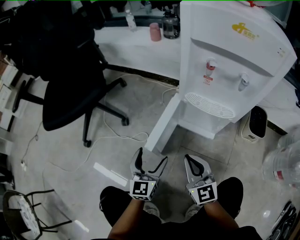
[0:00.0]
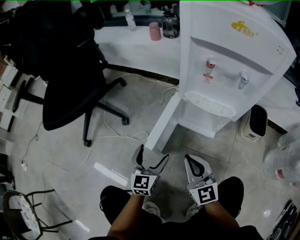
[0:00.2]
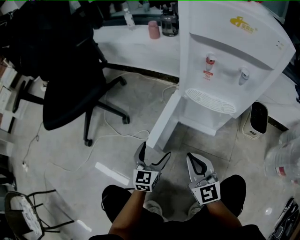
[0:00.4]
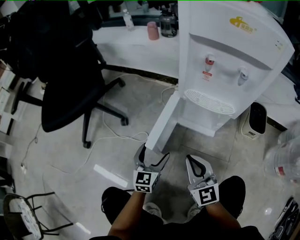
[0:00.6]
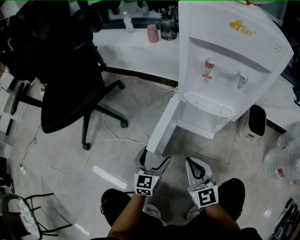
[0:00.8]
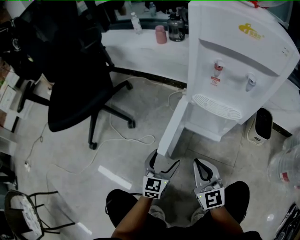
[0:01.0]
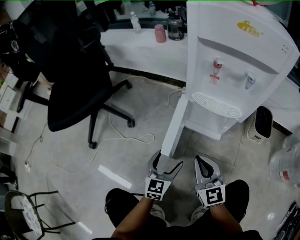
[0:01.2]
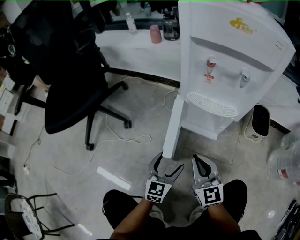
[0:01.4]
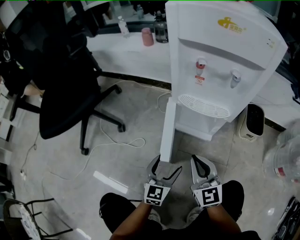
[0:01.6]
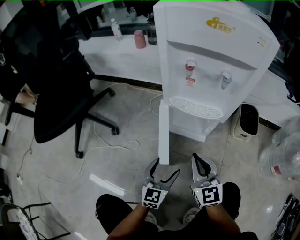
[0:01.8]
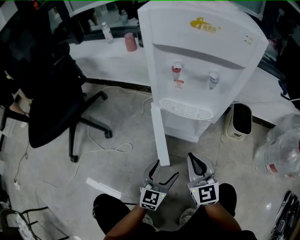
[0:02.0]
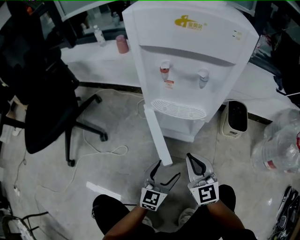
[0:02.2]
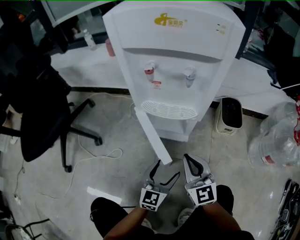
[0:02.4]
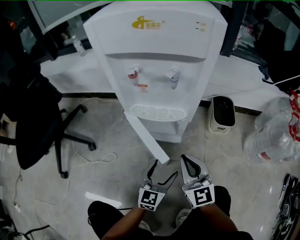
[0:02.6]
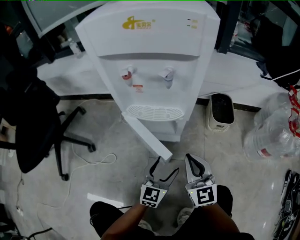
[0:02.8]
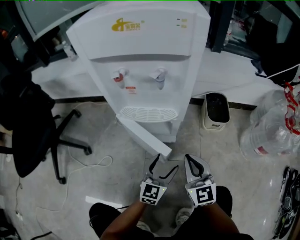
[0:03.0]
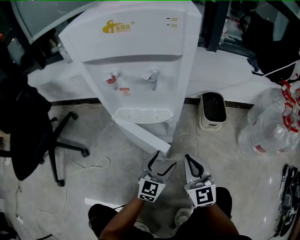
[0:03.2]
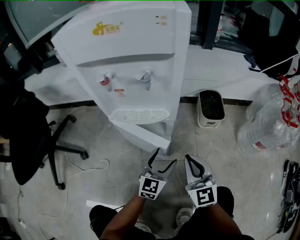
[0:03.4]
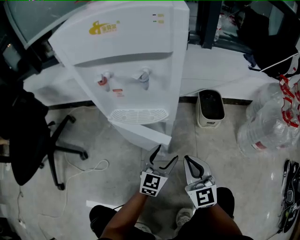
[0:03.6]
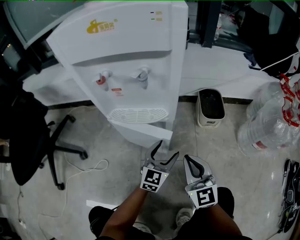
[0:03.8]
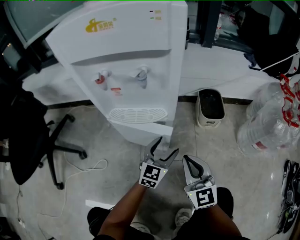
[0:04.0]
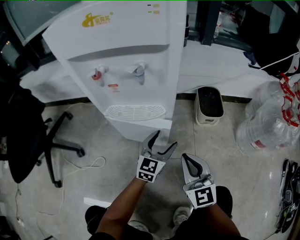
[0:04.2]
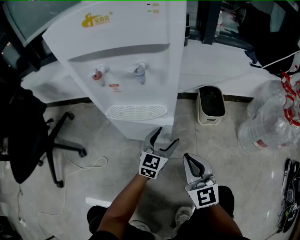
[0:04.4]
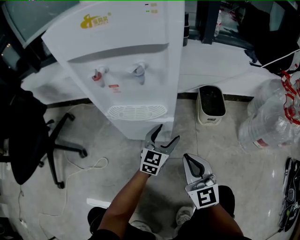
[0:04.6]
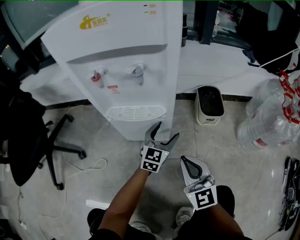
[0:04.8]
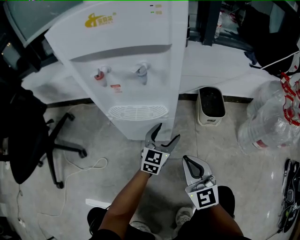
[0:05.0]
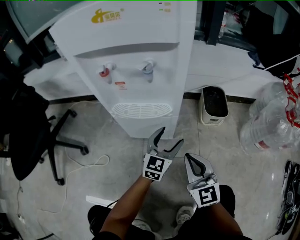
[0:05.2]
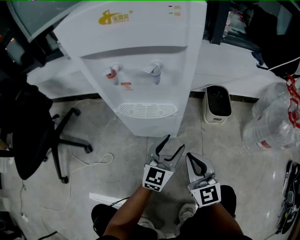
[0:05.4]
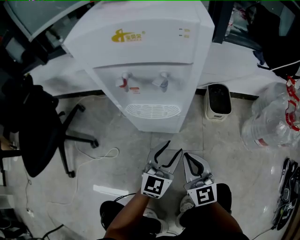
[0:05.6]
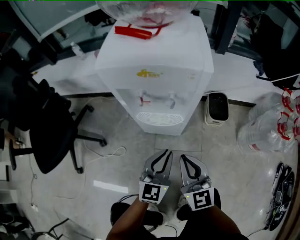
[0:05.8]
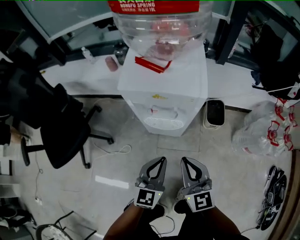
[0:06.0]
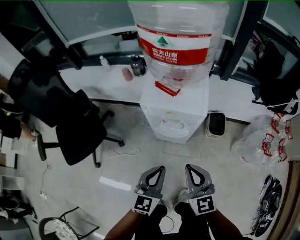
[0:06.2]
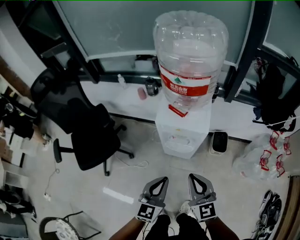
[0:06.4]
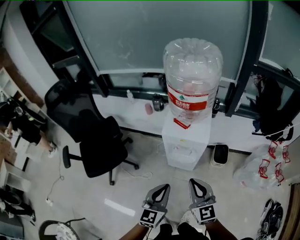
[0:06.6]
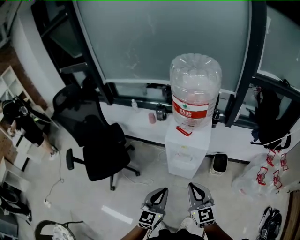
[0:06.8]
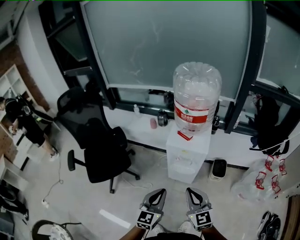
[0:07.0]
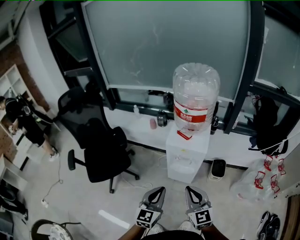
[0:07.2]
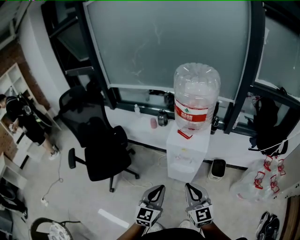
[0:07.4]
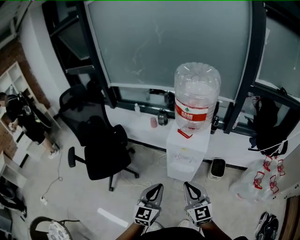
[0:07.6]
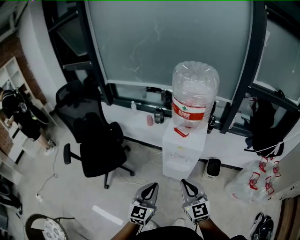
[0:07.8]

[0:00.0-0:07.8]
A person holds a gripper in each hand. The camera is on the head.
0:00.0 to 0:01.6: The left gripper travels to the right by roughly 10 cm.
0:01.6 to 0:03.2: The two grippers go some 15 cm to the right. The left gripper changes its angle by about 20 degrees.
0:03.2 to 0:04.6: The left gripper goes roughly 10 cm forward.
0:04.6 to 0:06.2: The right gripper shifts about 40 cm upward. Meanwhile the left gripper heads upward and backward, covering roughly 50 cm, and closes up.
0:06.2 to 0:07.8: The right gripper moves upward and backward, some 15 cm. The left gripper goes about 20 cm upward, backward and to the left.

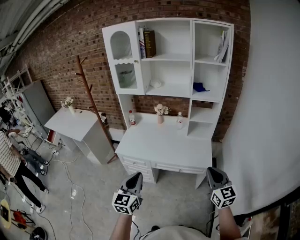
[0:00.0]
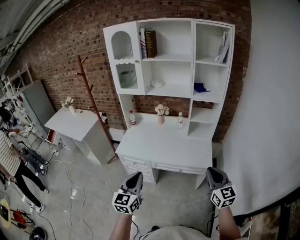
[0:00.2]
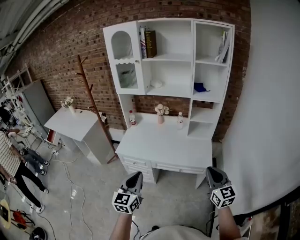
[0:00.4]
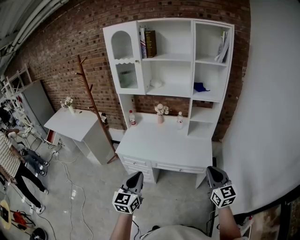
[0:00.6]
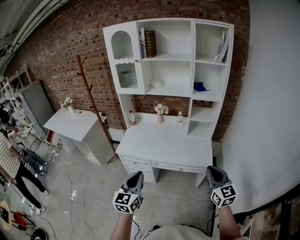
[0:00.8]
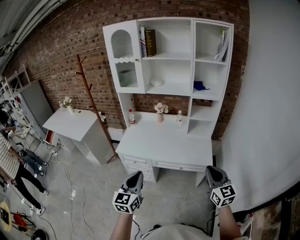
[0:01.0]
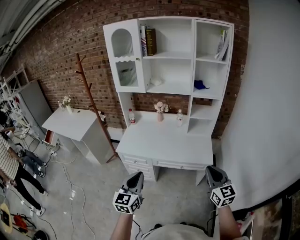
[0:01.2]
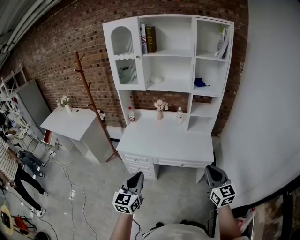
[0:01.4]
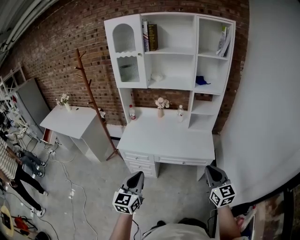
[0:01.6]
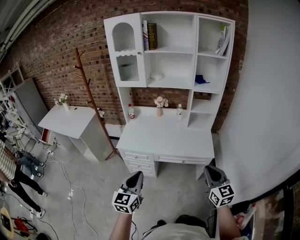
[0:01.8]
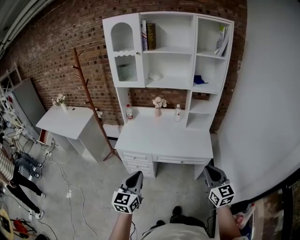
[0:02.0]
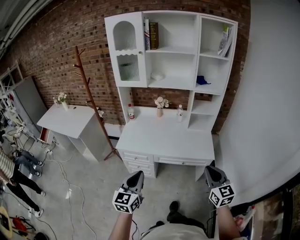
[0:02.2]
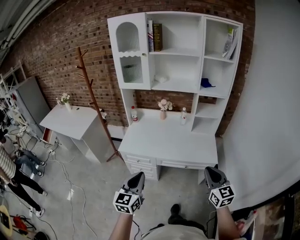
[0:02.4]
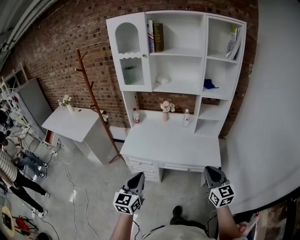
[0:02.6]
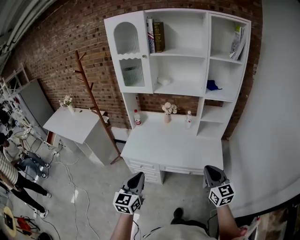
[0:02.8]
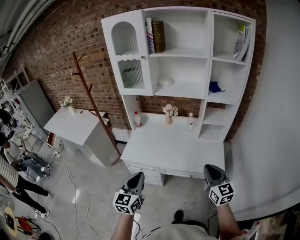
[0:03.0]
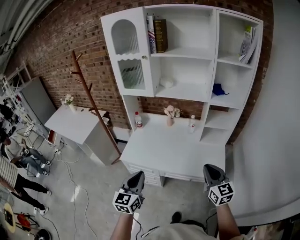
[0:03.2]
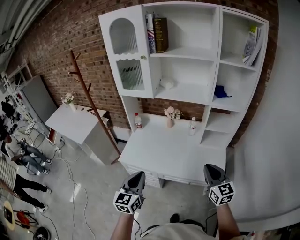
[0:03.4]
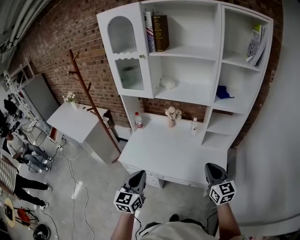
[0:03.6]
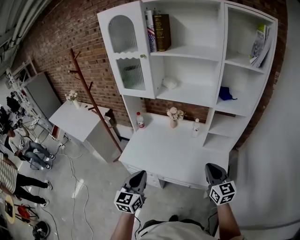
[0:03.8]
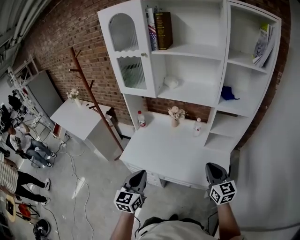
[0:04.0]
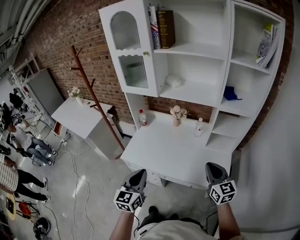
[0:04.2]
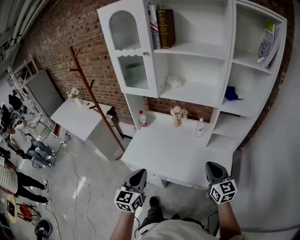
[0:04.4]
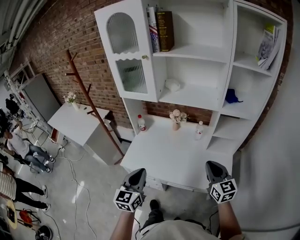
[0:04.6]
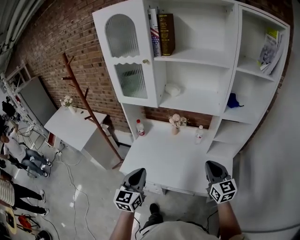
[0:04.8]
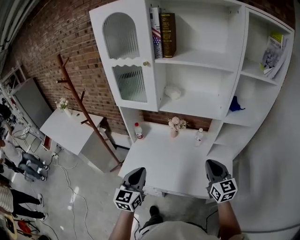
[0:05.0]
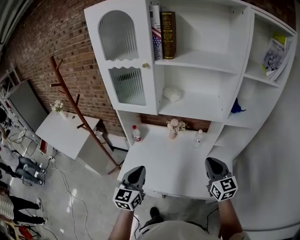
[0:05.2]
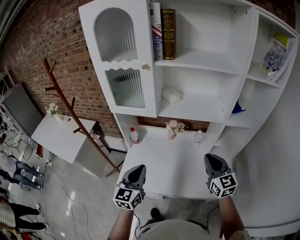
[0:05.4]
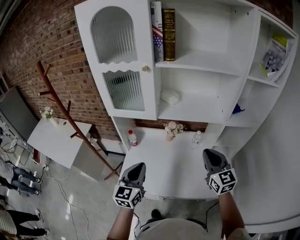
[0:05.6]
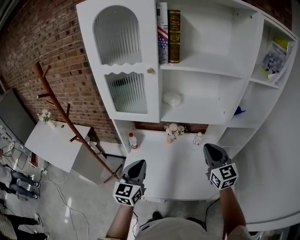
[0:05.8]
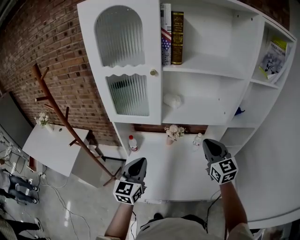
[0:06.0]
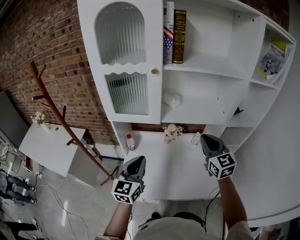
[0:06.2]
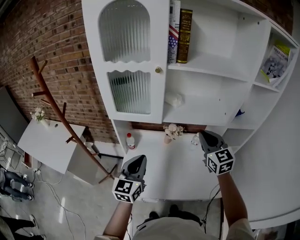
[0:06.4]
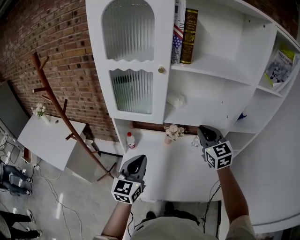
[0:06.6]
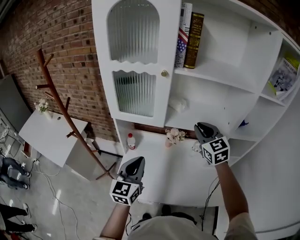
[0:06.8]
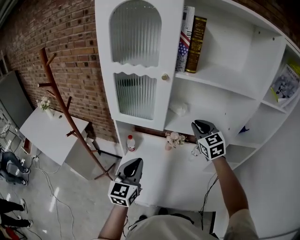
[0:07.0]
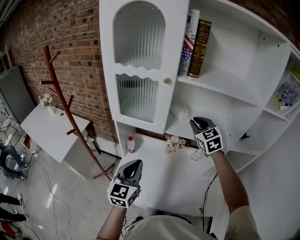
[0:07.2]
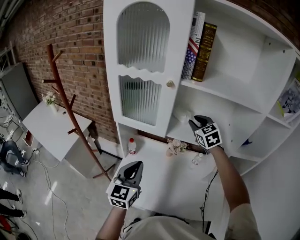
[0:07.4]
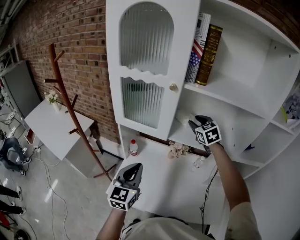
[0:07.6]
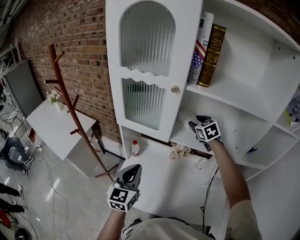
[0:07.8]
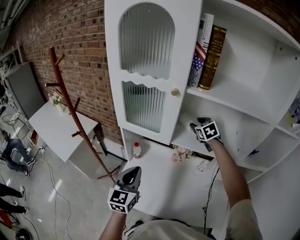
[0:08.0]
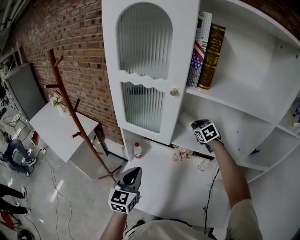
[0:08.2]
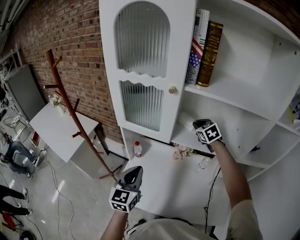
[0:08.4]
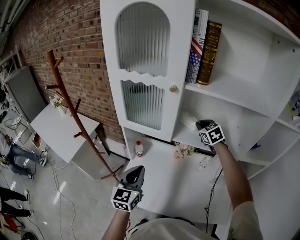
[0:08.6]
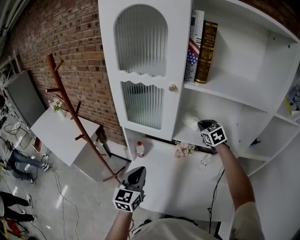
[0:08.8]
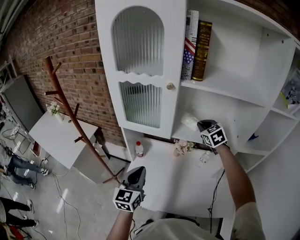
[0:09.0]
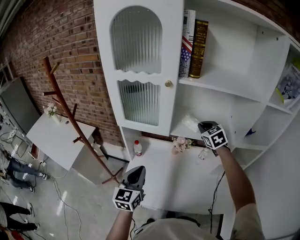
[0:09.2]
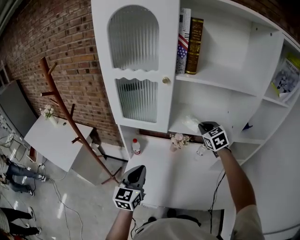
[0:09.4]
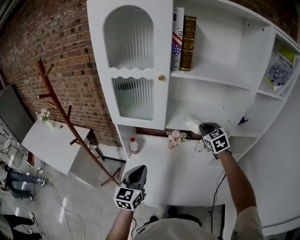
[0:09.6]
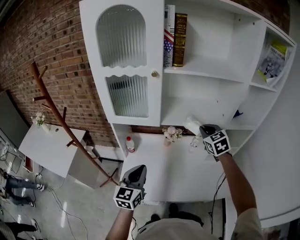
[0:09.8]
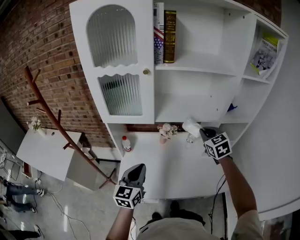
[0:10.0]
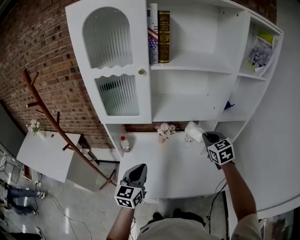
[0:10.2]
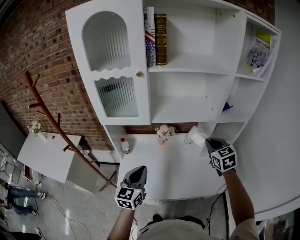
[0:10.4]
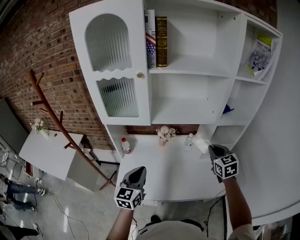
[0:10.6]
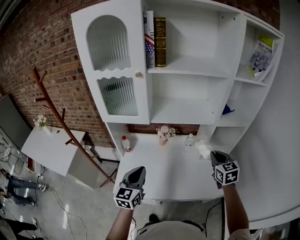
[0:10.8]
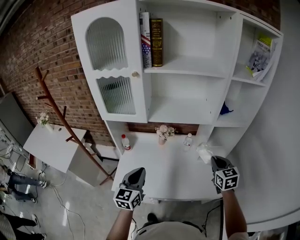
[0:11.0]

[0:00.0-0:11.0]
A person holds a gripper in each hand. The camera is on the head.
0:00.0 to 0:01.6: The grippers both shift to the left by roughly 5 cm.
0:01.6 to 0:03.2: Both grippers travel together forward, roughly 20 cm.
0:03.2 to 0:04.8: The grippers both shift forward by roughly 15 cm.
0:04.8 to 0:06.2: The left gripper goes about 20 cm forward and to the left. The right gripper moves forward, to the left and upward, approximately 25 cm.
0:06.2 to 0:07.8: The right gripper travels forward by approximately 30 cm, rotates approximately 30 degrees, and opens its fingers.
0:07.8 to 0:09.4: The right gripper shifts roughly 10 cm backward, and closes its fingers.
0:09.4 to 0:11.0: The right gripper moves backward and to the right, about 30 cm, and turns by about 30 degrees. The left gripper is displaced to the right and backward by roughly 10 cm.

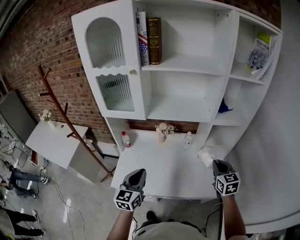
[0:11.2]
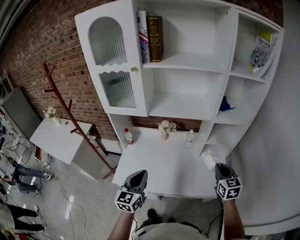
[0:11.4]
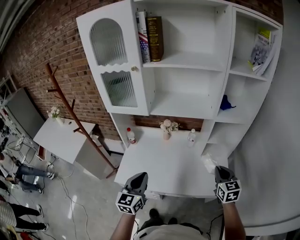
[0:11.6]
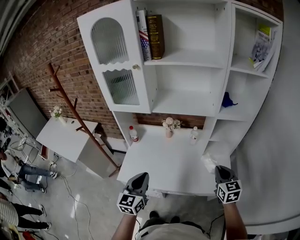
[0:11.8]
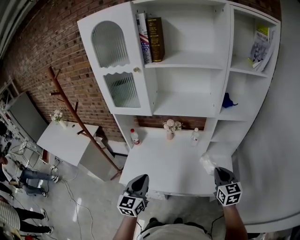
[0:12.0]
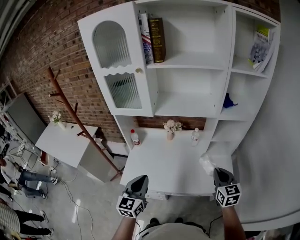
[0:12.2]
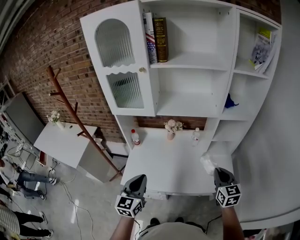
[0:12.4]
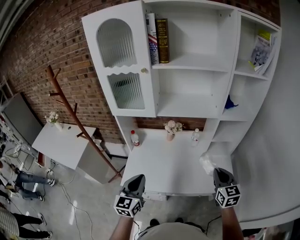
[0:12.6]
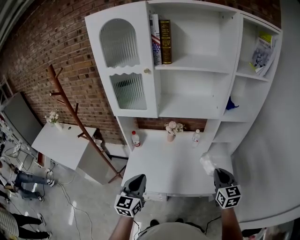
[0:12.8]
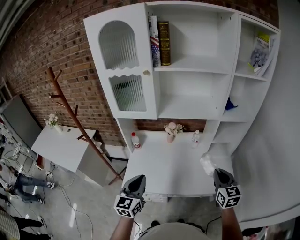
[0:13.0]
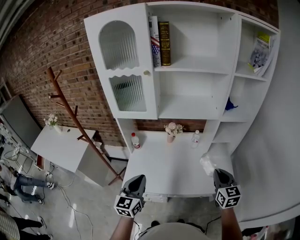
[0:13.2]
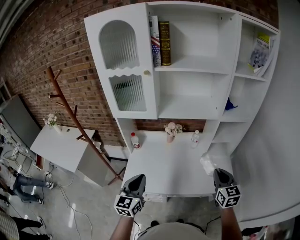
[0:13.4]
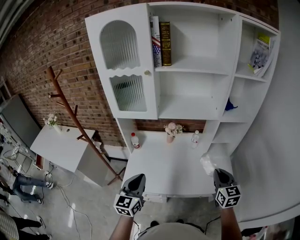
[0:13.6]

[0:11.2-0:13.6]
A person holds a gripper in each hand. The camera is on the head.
0:11.2 to 0:12.4: The grippers both shift backward by about 5 cm.
0:12.4 to 0:13.6: There are only small adjustments of the grippers.

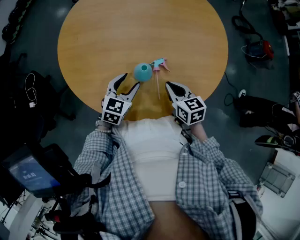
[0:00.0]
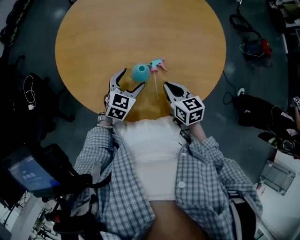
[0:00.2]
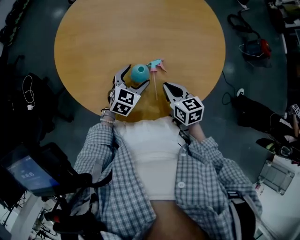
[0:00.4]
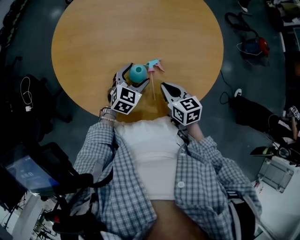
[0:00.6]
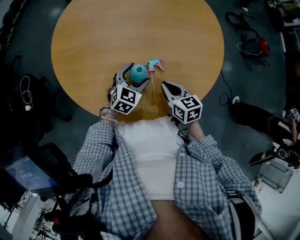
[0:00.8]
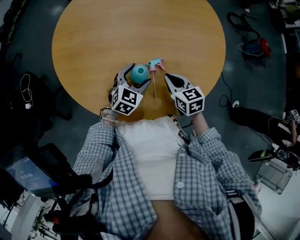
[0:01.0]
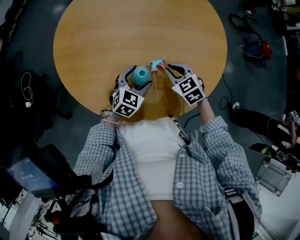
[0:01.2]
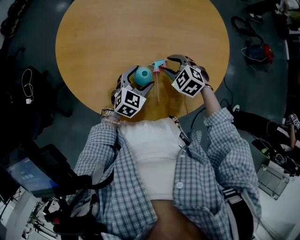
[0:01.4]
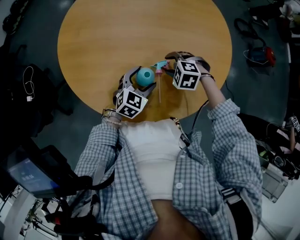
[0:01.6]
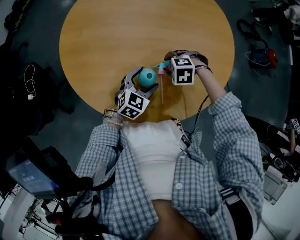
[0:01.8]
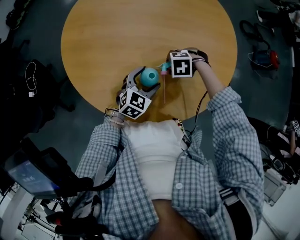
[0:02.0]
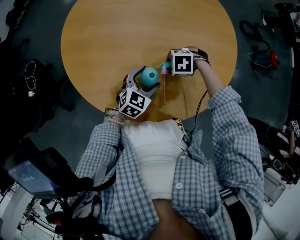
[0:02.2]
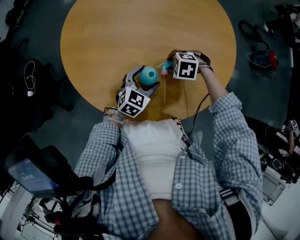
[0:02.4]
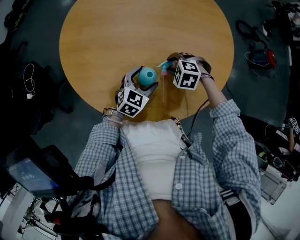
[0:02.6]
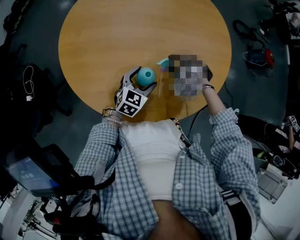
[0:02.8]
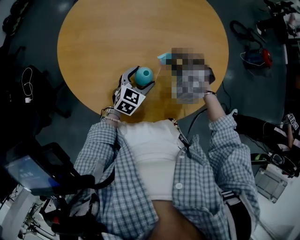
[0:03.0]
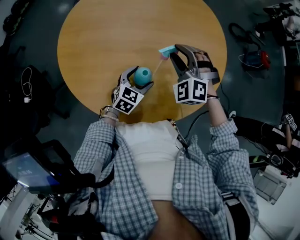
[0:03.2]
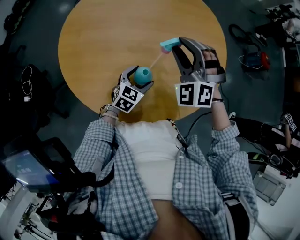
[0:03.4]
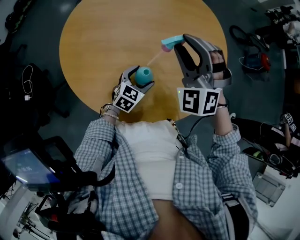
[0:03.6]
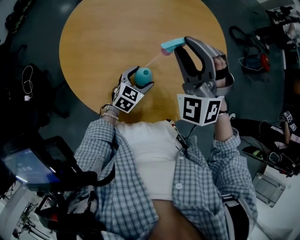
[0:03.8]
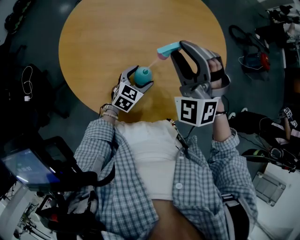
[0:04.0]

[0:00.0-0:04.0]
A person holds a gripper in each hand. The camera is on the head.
0:00.0 to 0:01.4: The left gripper goes roughly 5 cm to the right, and opens up, while the right gripper goes about 10 cm forward, rolls counterclockwise, seen from behind, by some 50 degrees, and opens.
0:01.4 to 0:02.6: The right gripper changes its angle by about 20 degrees.
0:02.6 to 0:04.0: The right gripper shifts about 30 cm upward, and angles its fingers upward, by about 60 degrees.
